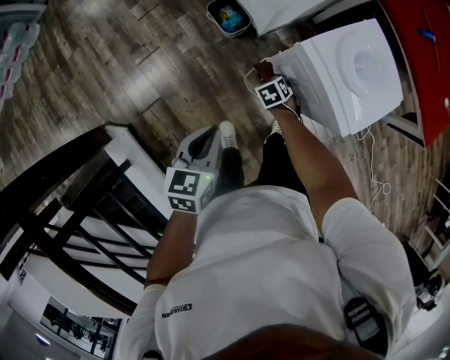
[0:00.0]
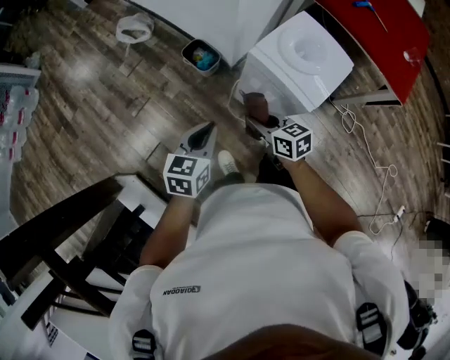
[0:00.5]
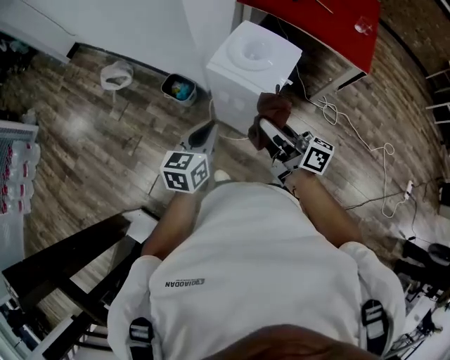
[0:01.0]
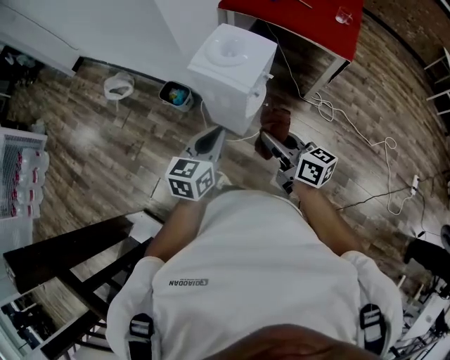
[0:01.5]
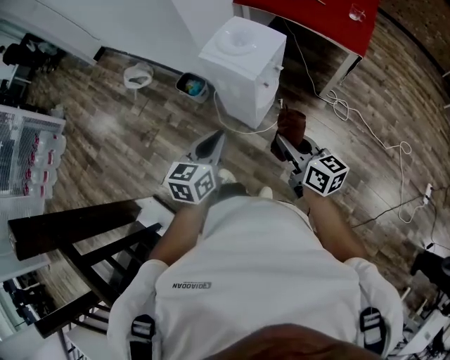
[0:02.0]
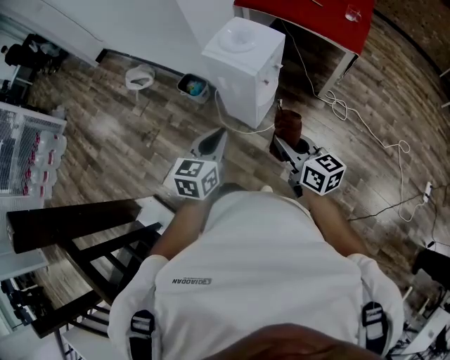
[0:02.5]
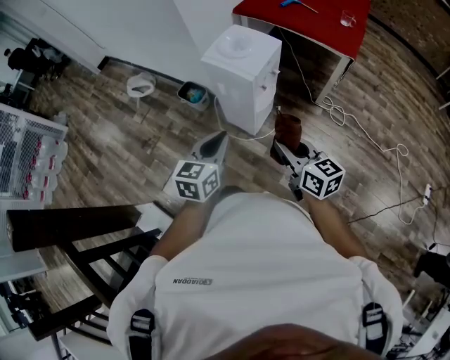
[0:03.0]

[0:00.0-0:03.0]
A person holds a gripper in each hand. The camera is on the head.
0:00.0 to 0:01.5: The right gripper shifts approximately 50 cm upward, backward and to the right, and tilts its fingers some 70 degrees upward; the left gripper moves to the right and upward, some 25 cm, and rotates roughly 30 degrees.
0:01.5 to 0:03.0: Both grippers travel together backward, approximately 10 cm.

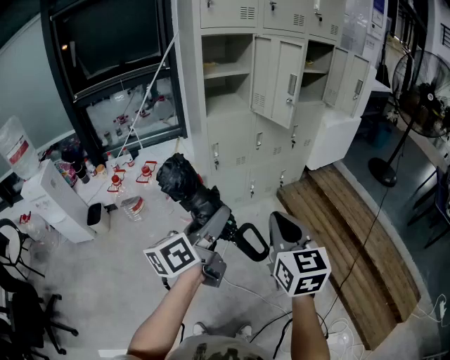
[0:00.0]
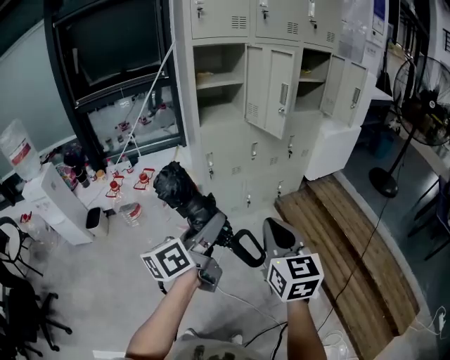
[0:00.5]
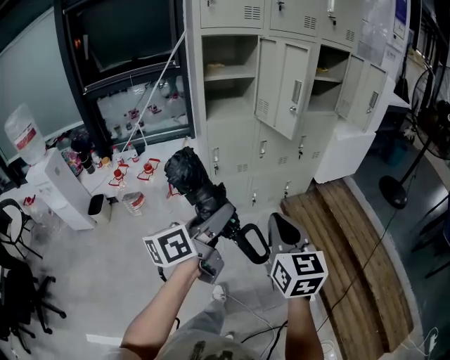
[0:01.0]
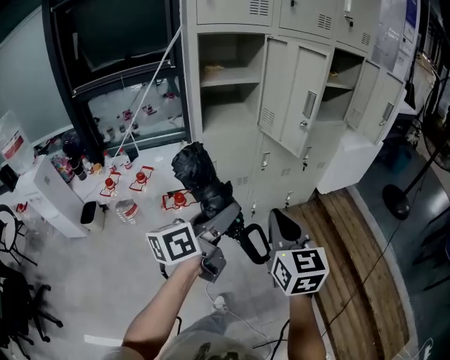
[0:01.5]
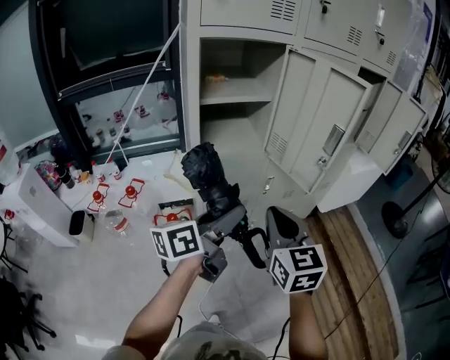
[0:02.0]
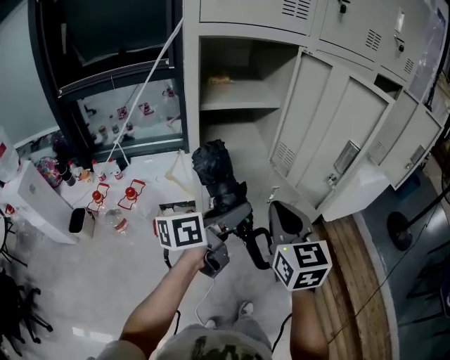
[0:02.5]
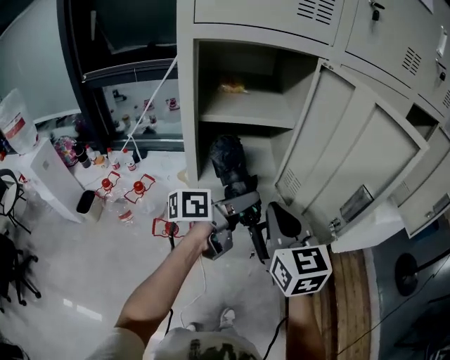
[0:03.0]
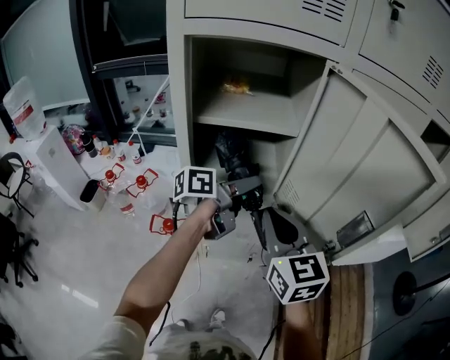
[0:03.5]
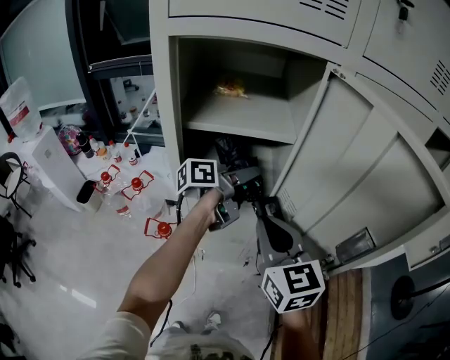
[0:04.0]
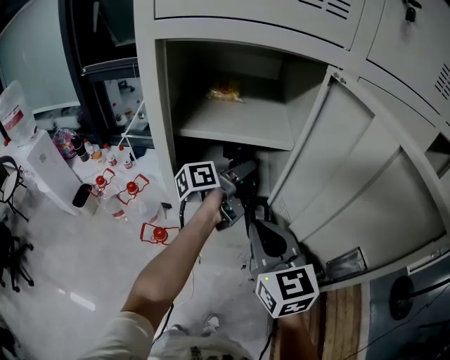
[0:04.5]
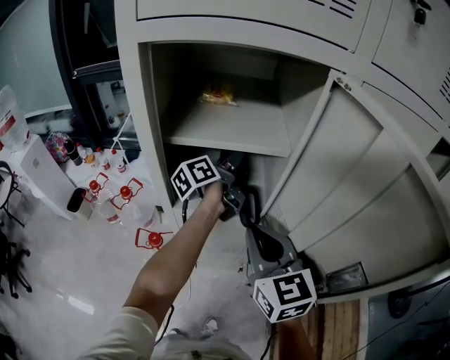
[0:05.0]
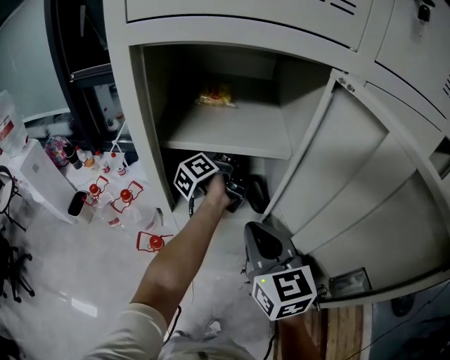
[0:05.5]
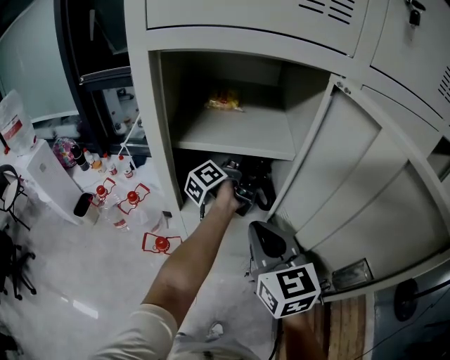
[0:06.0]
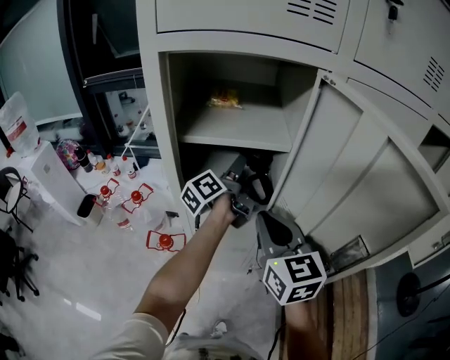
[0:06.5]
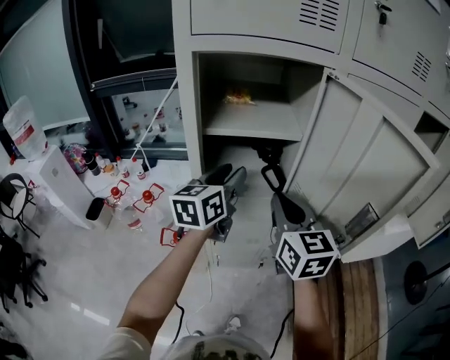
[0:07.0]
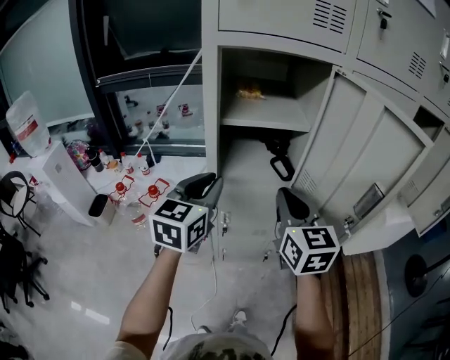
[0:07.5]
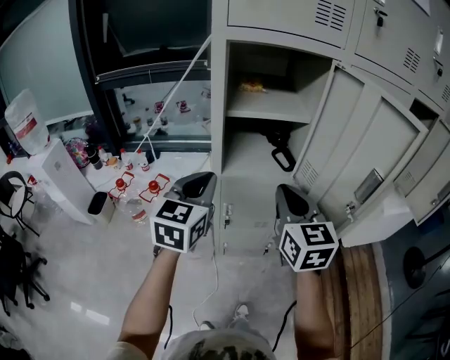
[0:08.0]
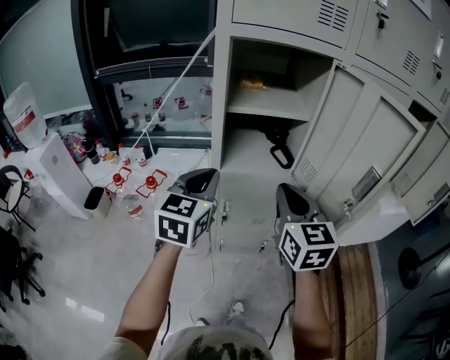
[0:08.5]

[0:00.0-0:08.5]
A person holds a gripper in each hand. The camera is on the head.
0:00.0 to 0:02.0: The grippers both shift forward by some 35 cm.
0:02.0 to 0:04.0: The right gripper goes some 20 cm forward, and swivels some 20 degrees, while the left gripper is displaced forward by some 35 cm, and swivels some 20 degrees.
0:04.0 to 0:06.5: The left gripper goes about 5 cm forward, and changes its angle by some 30 degrees.
0:06.5 to 0:08.5: The right gripper travels backward by about 10 cm. Meanwhile the left gripper shifts approximately 30 cm backward and to the left, rotates around the line of its fingers by about 70 degrees, clockwise from behind, and closes.

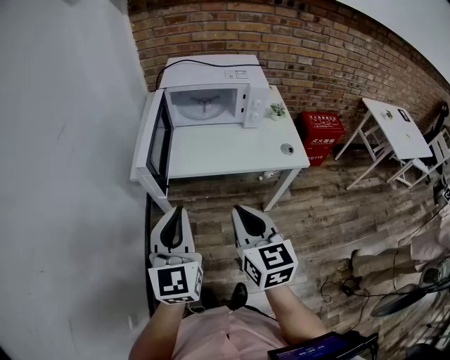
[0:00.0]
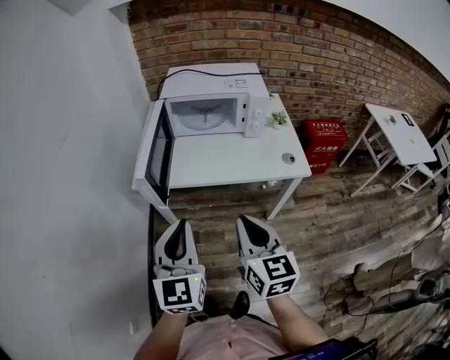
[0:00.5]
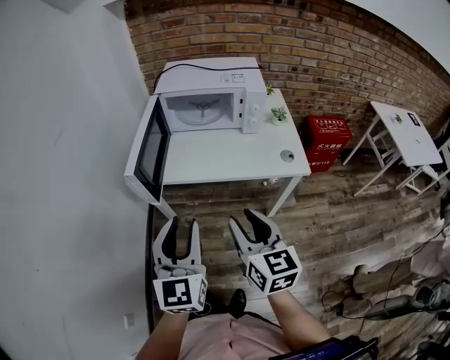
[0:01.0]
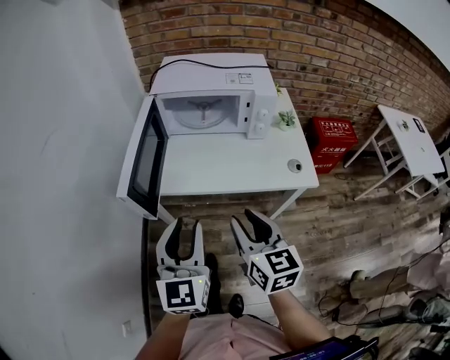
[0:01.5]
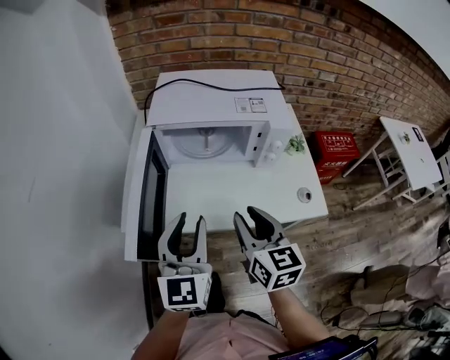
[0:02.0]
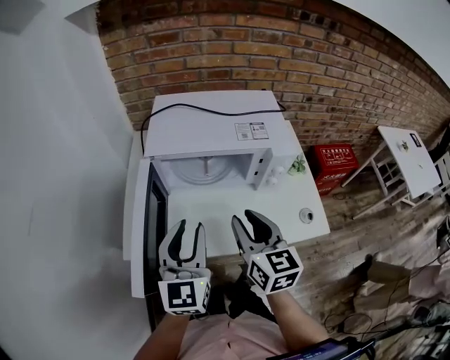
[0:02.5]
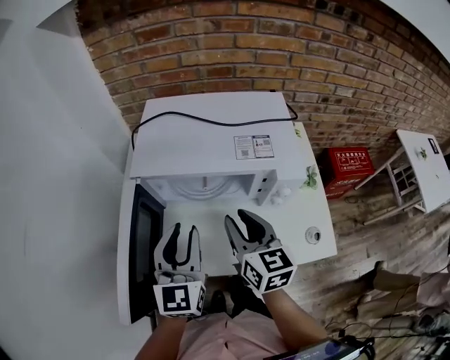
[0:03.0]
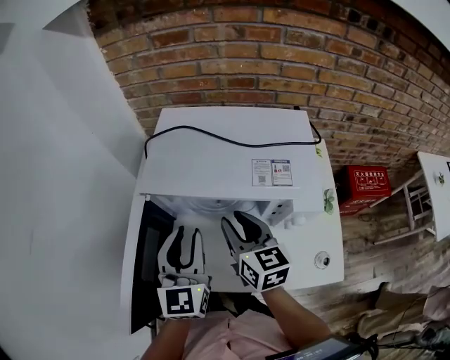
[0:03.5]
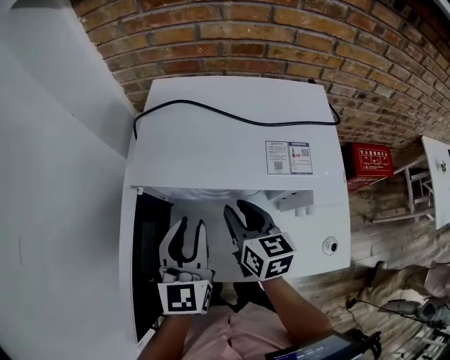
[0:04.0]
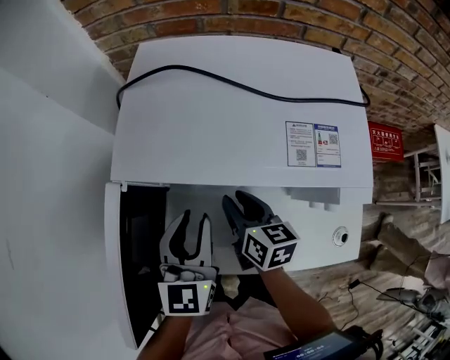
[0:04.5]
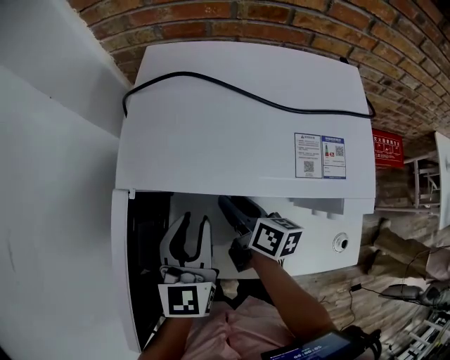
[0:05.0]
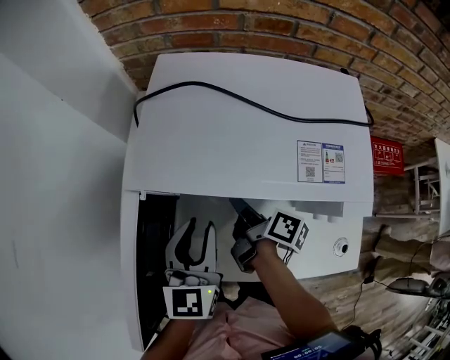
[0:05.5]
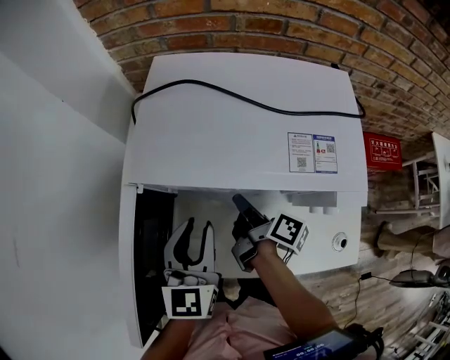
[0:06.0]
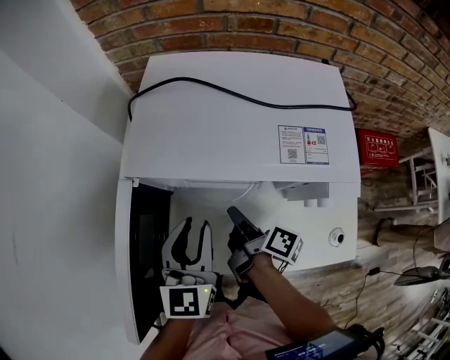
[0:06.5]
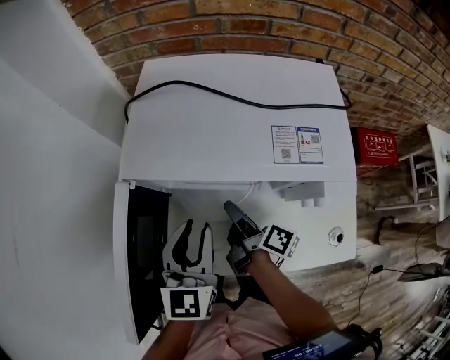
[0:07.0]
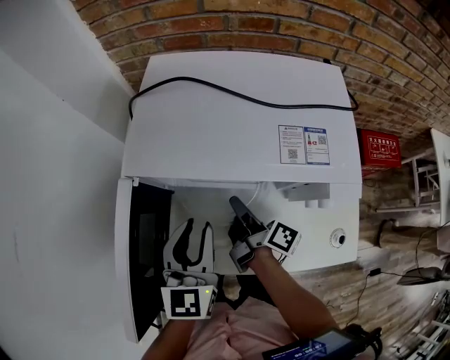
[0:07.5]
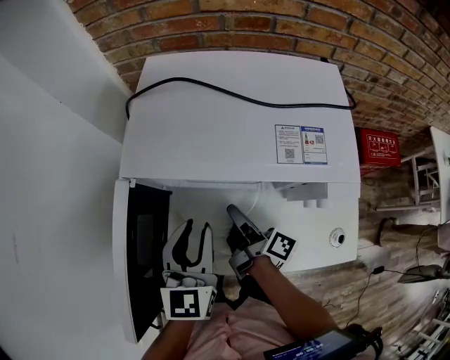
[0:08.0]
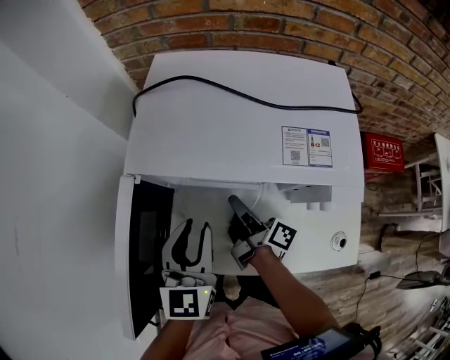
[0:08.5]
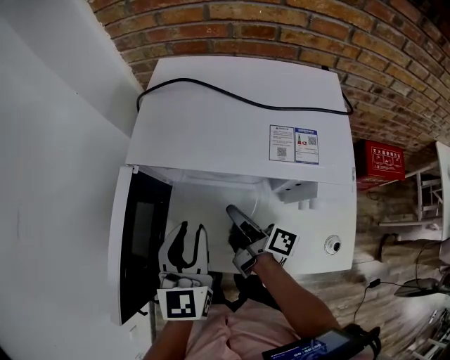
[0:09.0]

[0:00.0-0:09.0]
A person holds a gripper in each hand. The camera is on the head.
0:00.0 to 0:02.0: Both grippers move forward, about 25 cm. The right gripper opens. Meanwhile the left gripper opens up.
0:02.0 to 0:04.5: Both grippers move forward and downward, approximately 25 cm. The right gripper turns by approximately 30 degrees.
0:04.5 to 0:07.0: The right gripper rolls clockwise, seen from behind, by about 50 degrees, and closes and opens again.
0:07.0 to 0:09.0: The right gripper closes up.

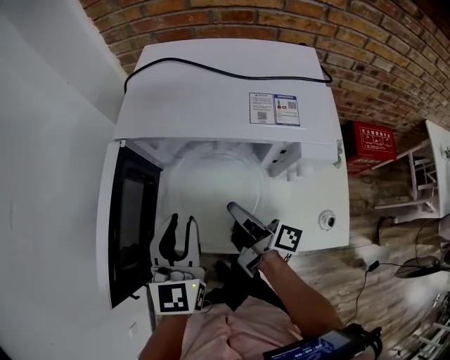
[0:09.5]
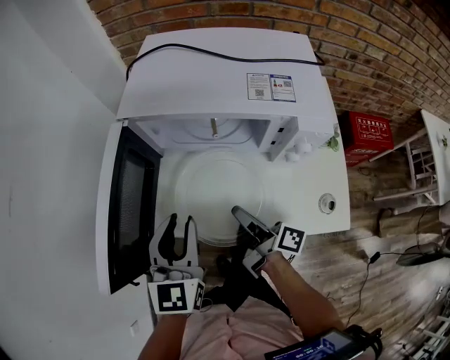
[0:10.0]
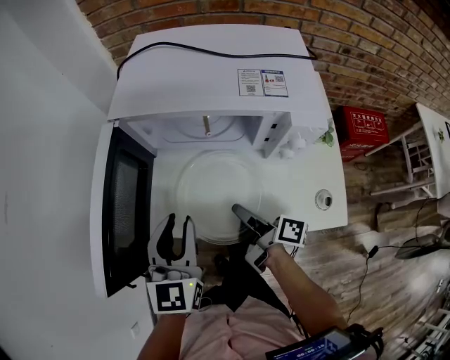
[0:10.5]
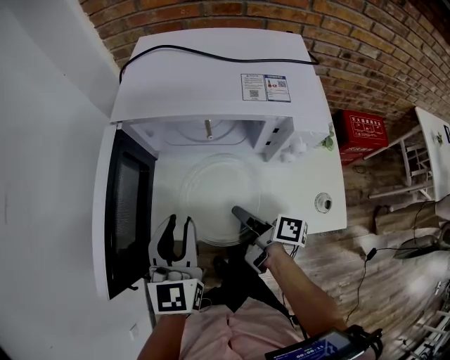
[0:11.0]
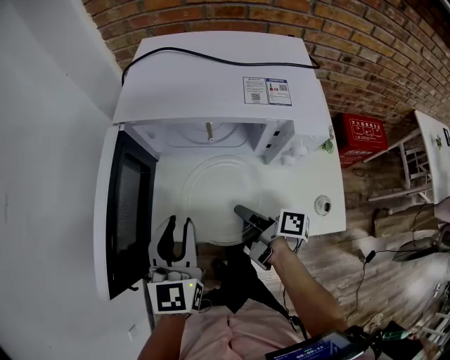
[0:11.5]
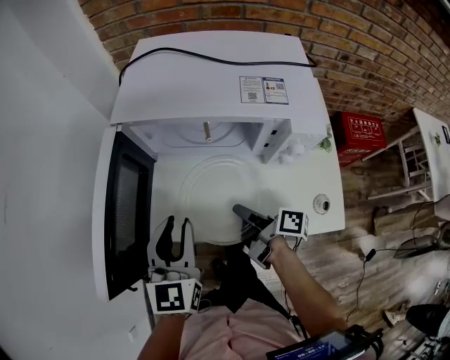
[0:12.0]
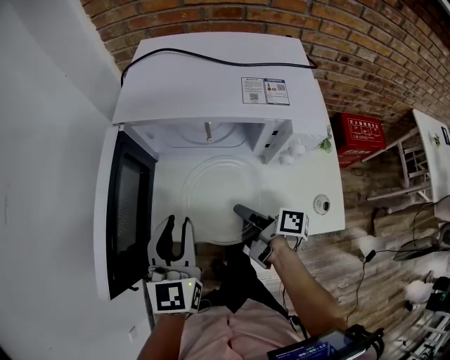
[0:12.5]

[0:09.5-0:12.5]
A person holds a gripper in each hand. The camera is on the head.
0:09.5 to 0:11.0: The right gripper moves backward and downward, approximately 10 cm.
0:11.0 to 0:12.5: Both grippers stay about where they are.

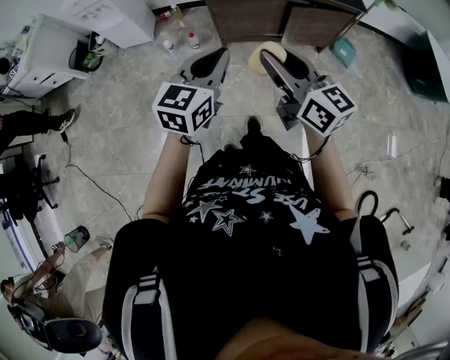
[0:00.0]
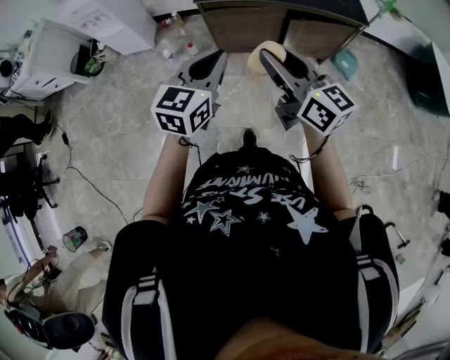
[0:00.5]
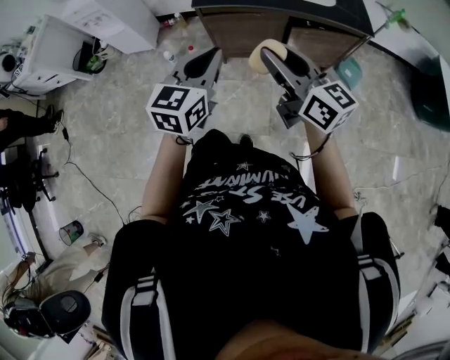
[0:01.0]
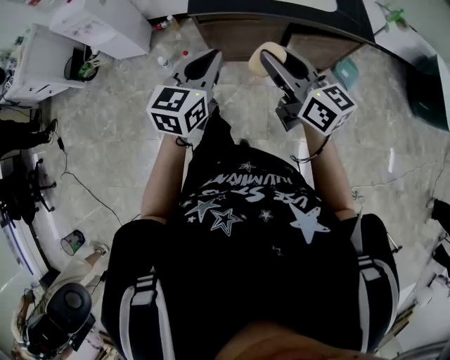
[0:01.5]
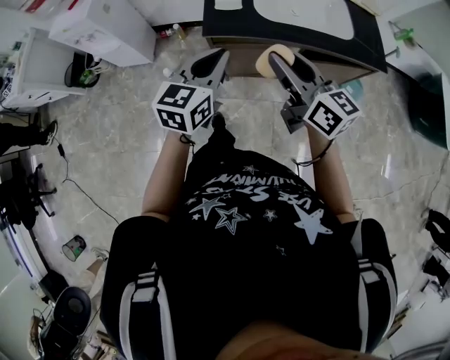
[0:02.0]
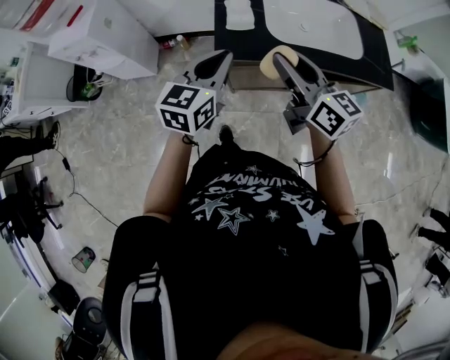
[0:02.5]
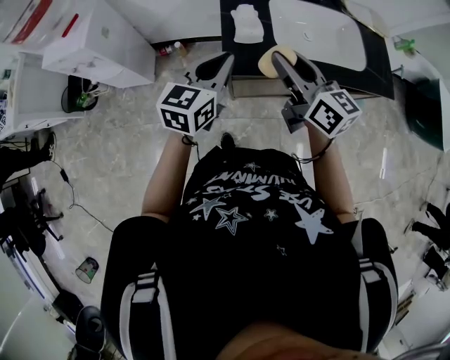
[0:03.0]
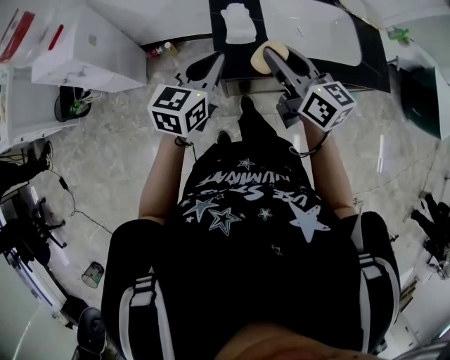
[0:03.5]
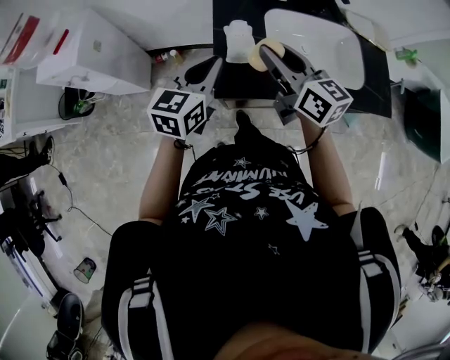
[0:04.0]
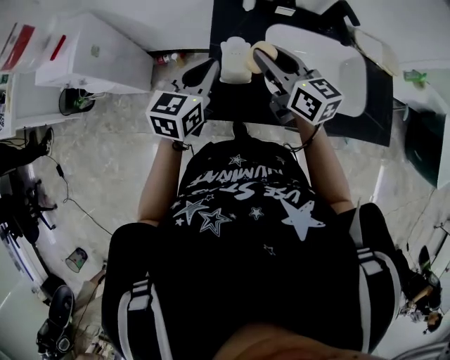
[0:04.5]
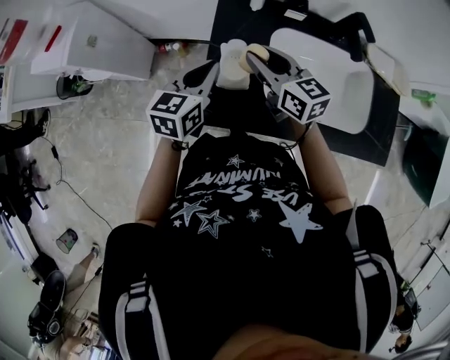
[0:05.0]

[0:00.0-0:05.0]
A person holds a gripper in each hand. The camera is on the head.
0:00.0 to 0:02.5: The grippers both shift forward by approximately 40 cm.
0:02.5 to 0:05.0: The grippers both shift forward by about 25 cm. The right gripper changes its angle by approximately 20 degrees.
